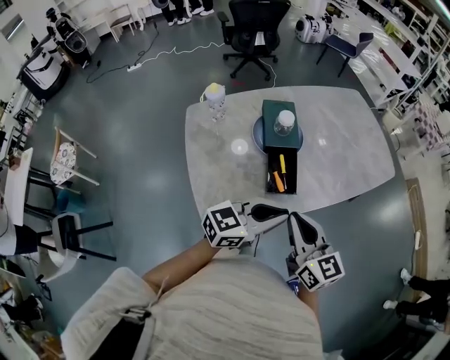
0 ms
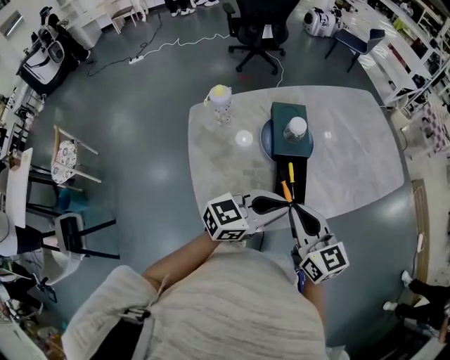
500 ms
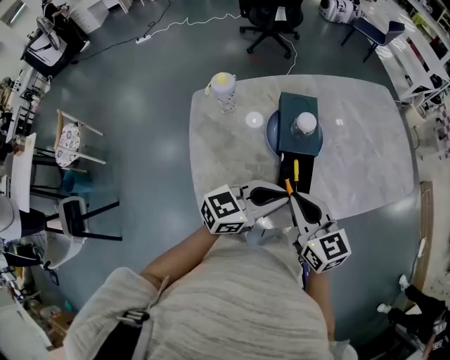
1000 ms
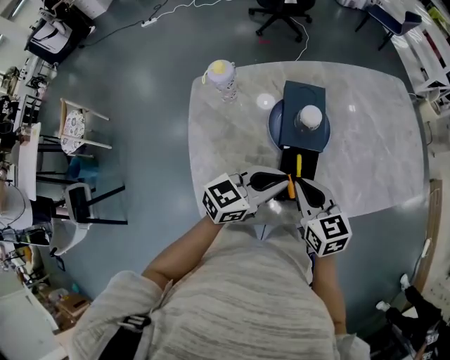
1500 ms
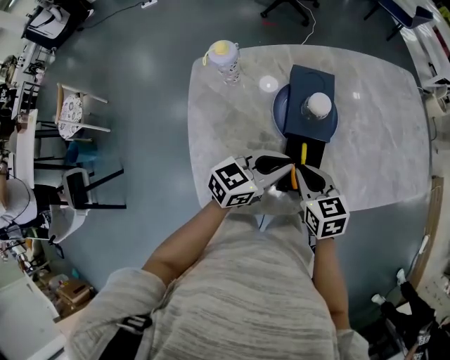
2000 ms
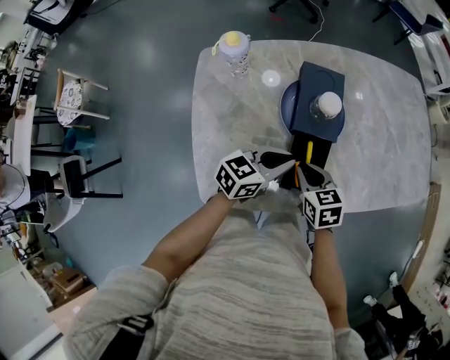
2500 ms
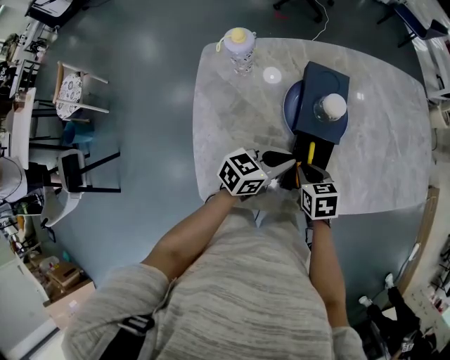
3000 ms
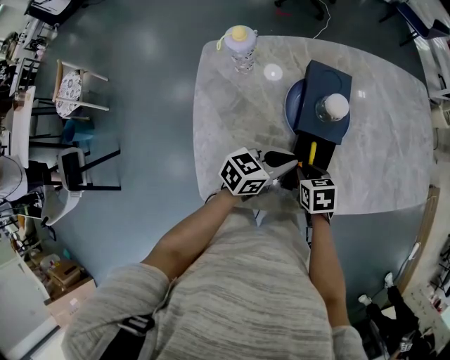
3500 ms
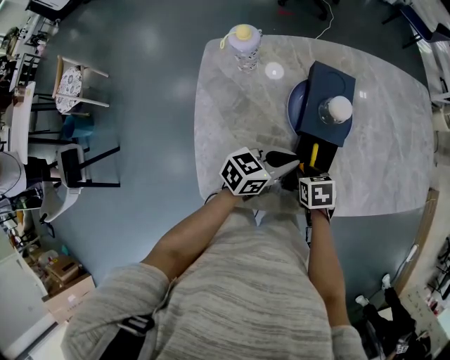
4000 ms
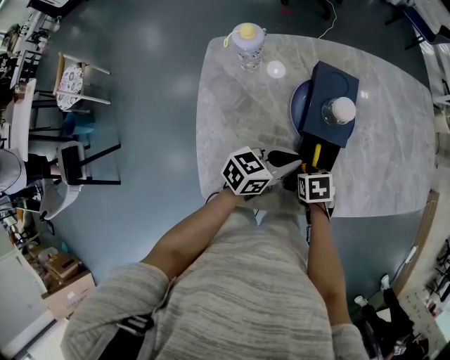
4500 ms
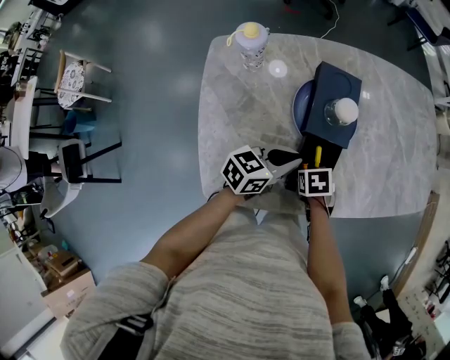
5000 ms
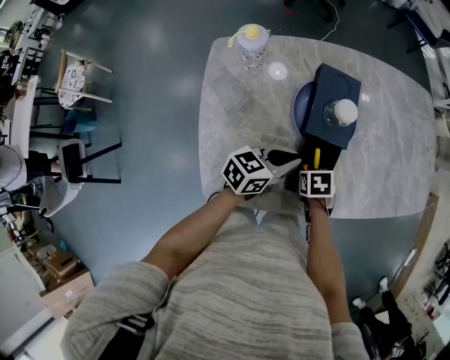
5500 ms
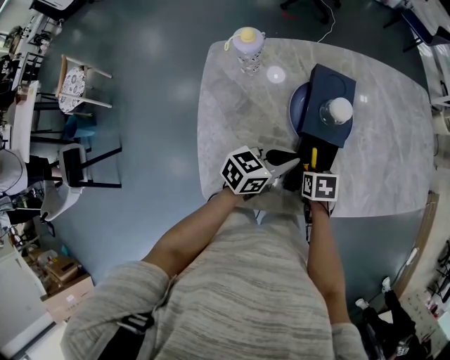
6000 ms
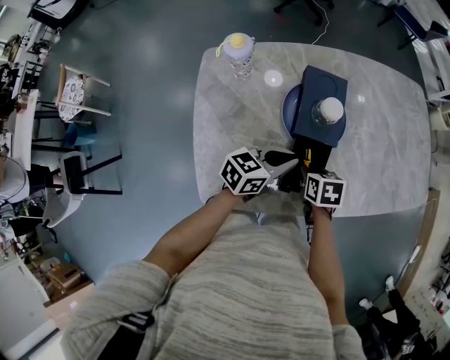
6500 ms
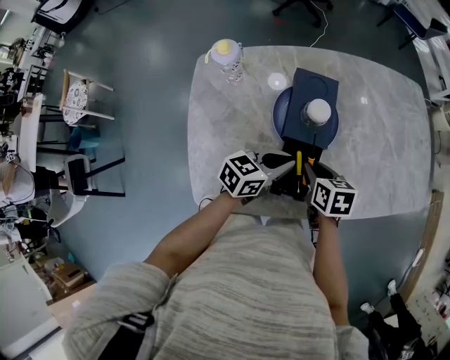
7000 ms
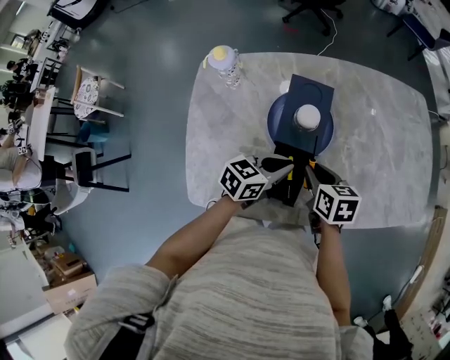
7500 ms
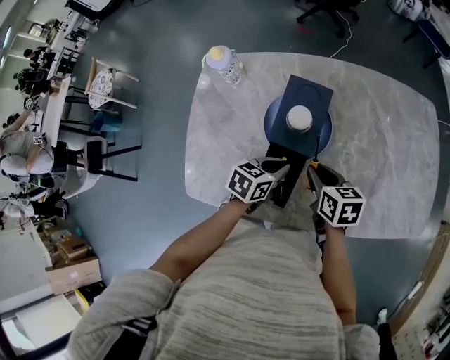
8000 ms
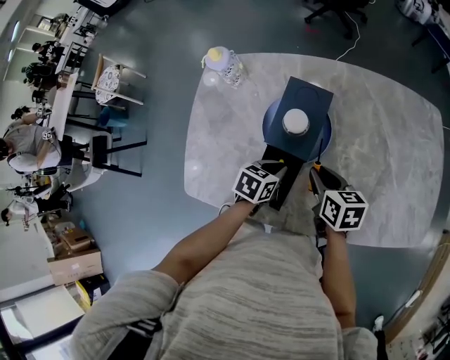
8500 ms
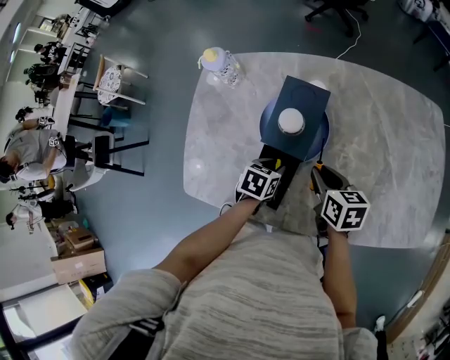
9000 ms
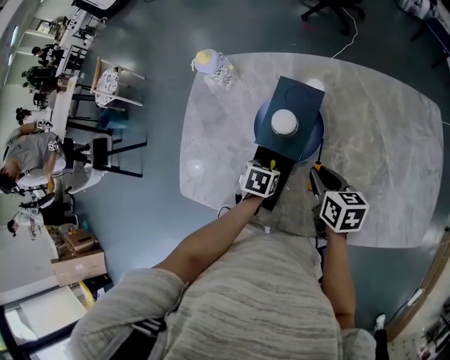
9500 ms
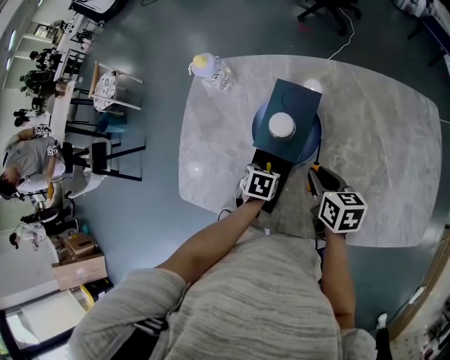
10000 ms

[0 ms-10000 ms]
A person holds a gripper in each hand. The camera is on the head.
0 ms to 2000 ms: Both grippers move forward and downward, roughly 25 cm. The right gripper tips its fingers downward by roughly 30 degrees. Meanwhile the left gripper swivels about 20 degrees.
2000 ms to 4000 ms: The left gripper goes about 5 cm downward; the right gripper travels downward by approximately 15 cm, and points its fingers roughly 30 degrees further downward.
4000 ms to 6000 ms: There are only small adjustments of the grippers.
6000 ms to 8000 ms: The right gripper travels upward, to the right and forward by about 20 cm, and turns by roughly 30 degrees. The left gripper heads to the right, covering about 10 cm, and changes its angle by about 30 degrees.
8000 ms to 10000 ms: The left gripper travels downward by roughly 10 cm, swivels some 40 degrees, and opens, while the right gripper ends up roughly 5 cm from where it was.

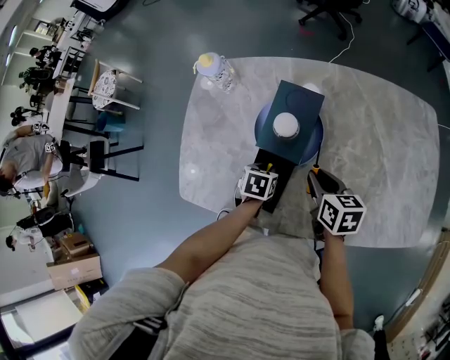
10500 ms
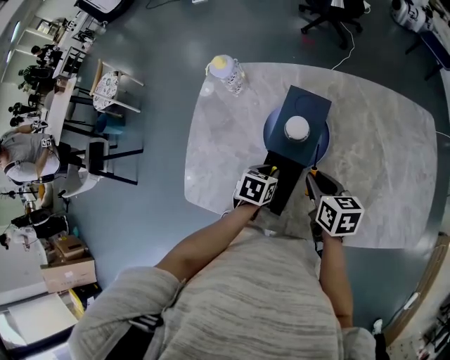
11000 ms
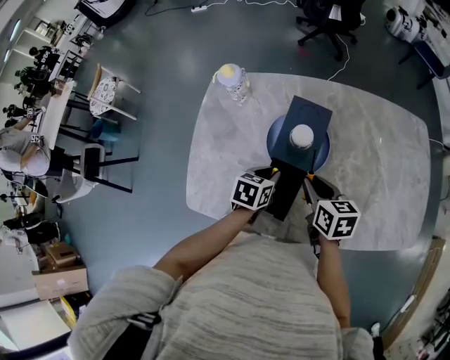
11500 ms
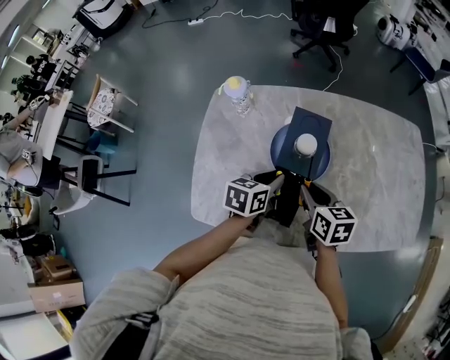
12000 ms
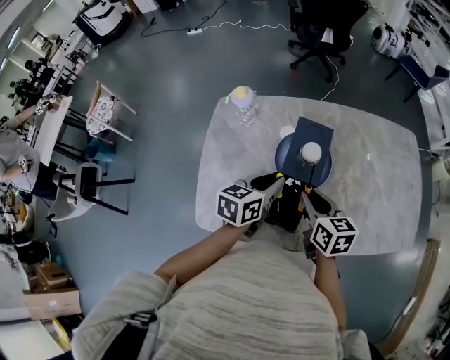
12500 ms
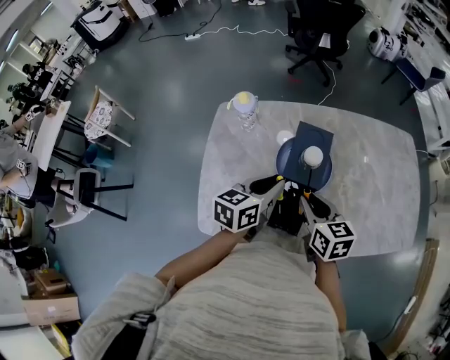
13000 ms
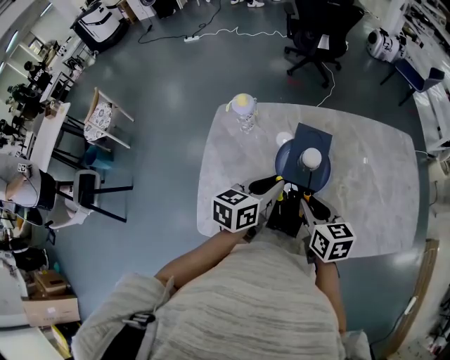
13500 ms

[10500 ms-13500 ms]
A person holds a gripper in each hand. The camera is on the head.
10500 ms to 12000 ms: The right gripper moves to the left and upward, about 10 cm. Meanwhile the left gripper goes roughly 15 cm upward, and turns by approximately 30 degrees.
12000 ms to 13500 ms: The left gripper heads upward, covering approximately 10 cm; the right gripper changes place by some 5 cm.

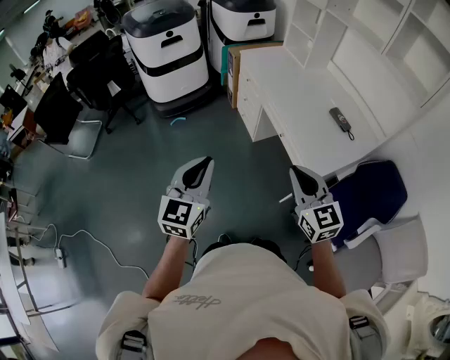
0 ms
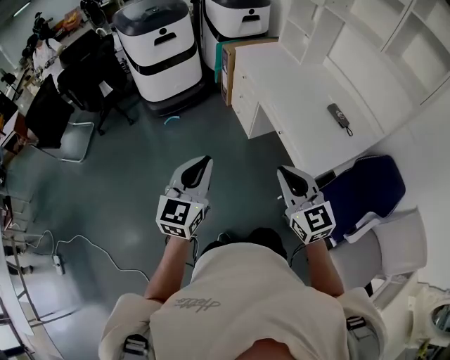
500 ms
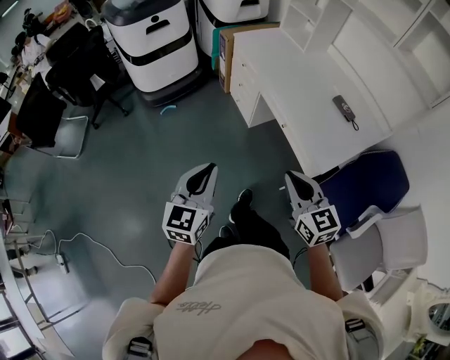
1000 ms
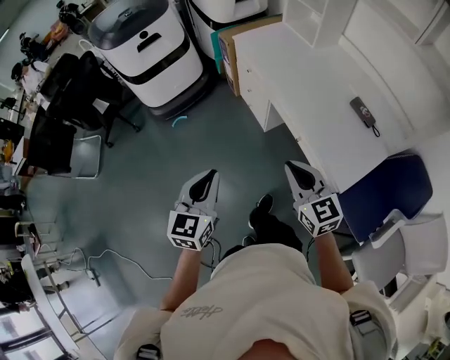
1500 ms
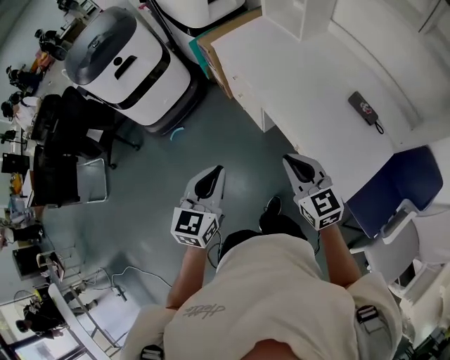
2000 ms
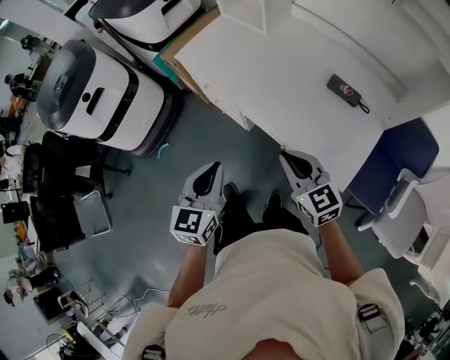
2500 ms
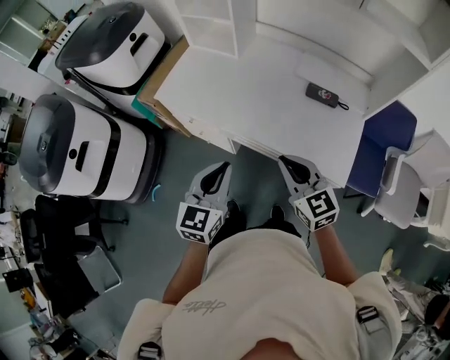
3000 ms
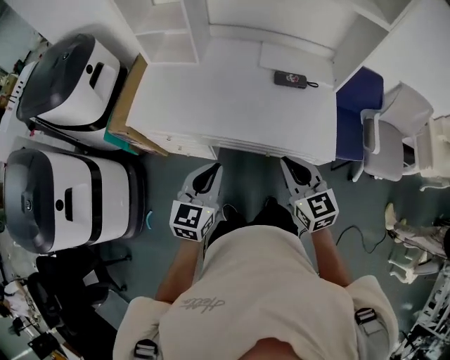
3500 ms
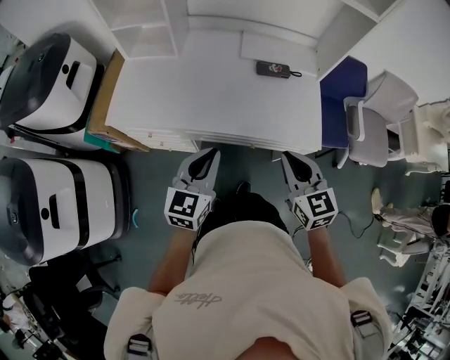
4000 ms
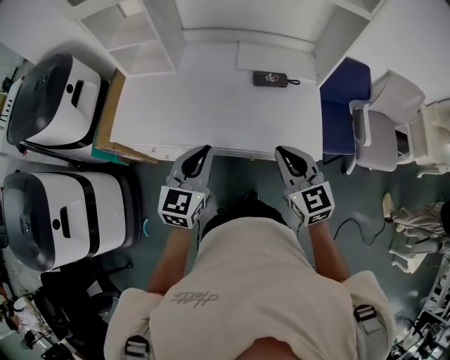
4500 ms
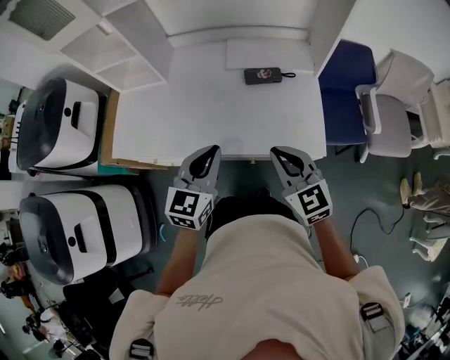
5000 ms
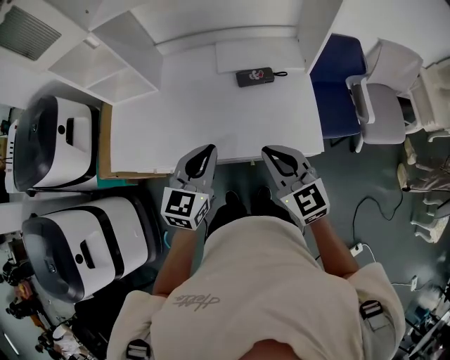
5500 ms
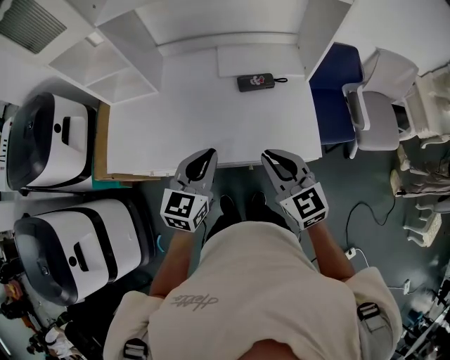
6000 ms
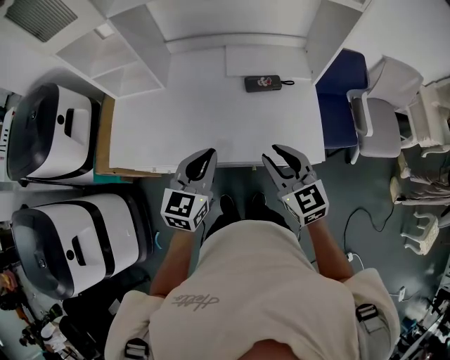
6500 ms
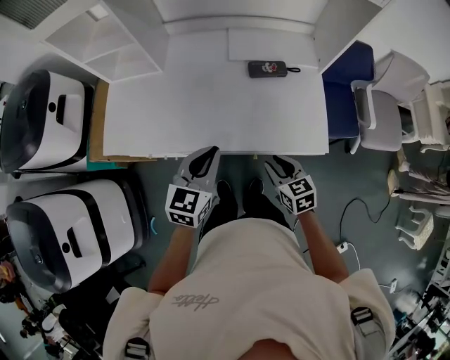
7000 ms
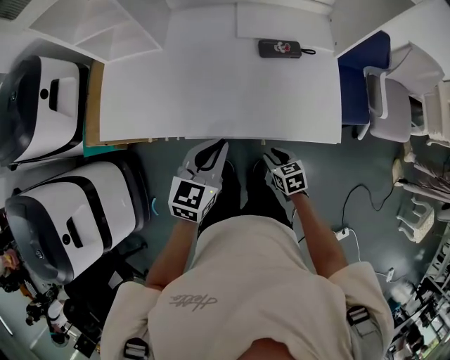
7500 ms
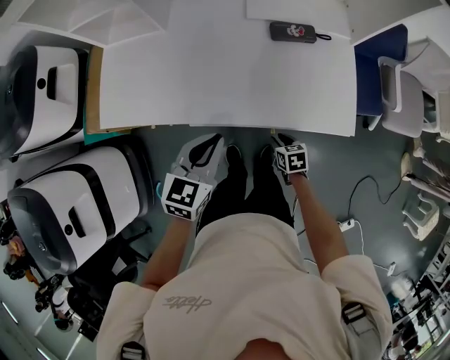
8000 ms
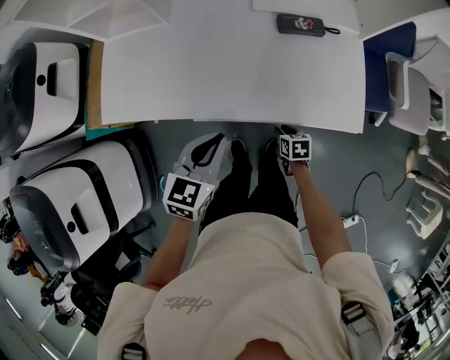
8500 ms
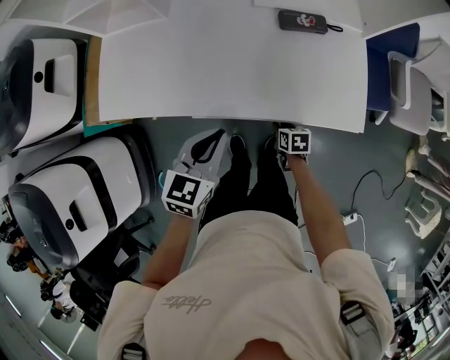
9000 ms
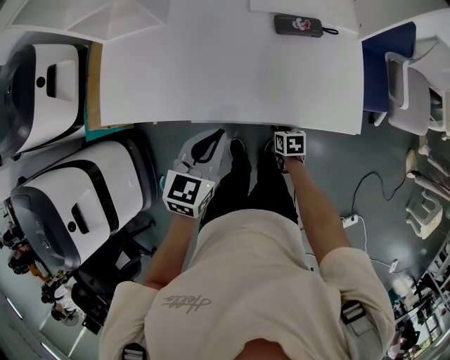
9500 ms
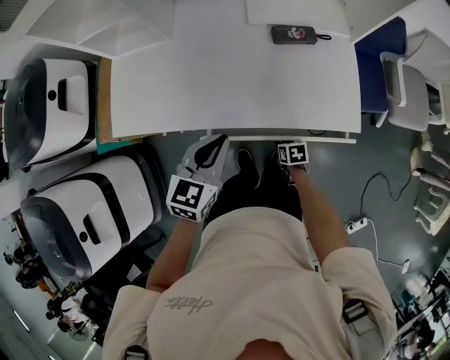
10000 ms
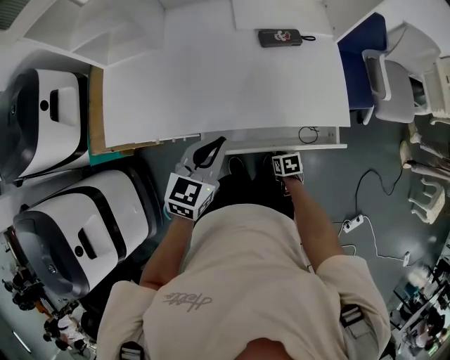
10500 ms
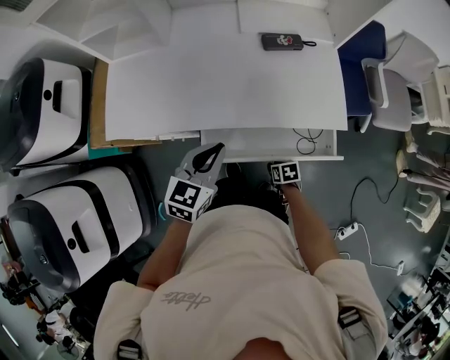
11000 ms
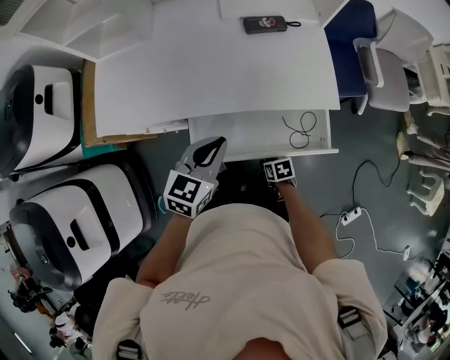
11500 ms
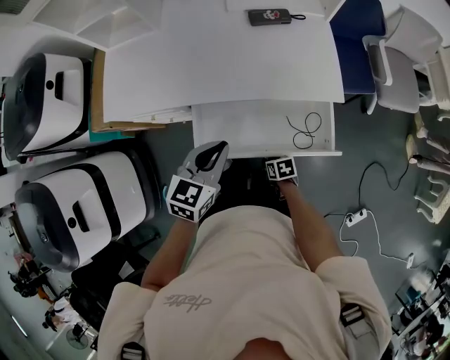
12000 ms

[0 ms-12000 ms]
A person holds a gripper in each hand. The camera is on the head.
0 ms to 2000 ms: Both grippers travel together forward, about 30 cm.
2000 ms to 4000 ms: The left gripper ends up approximately 20 cm from where it was, and turns by approximately 50 degrees, while the right gripper swivels approximately 60 degrees.
4000 ms to 6000 ms: The right gripper is displaced forward by approximately 10 cm, while the left gripper goes roughly 15 cm forward and to the right.
6000 ms to 8000 ms: The left gripper is displaced downward and to the left by roughly 15 cm, while the right gripper heads downward, covering about 40 cm, angles its fingers downward, by roughly 40 degrees, and opens its fingers.
8000 ms to 10000 ms: The grippers make only small movements.
10000 ms to 12000 ms: Both grippers travel together backward, roughly 15 cm.

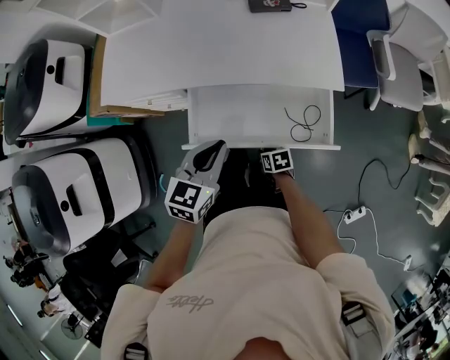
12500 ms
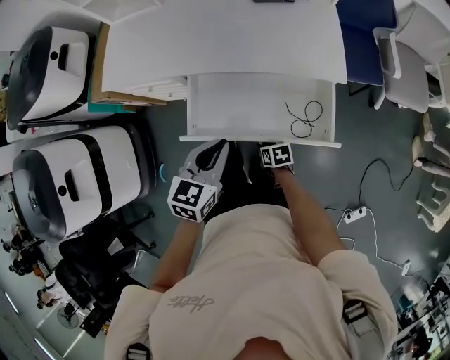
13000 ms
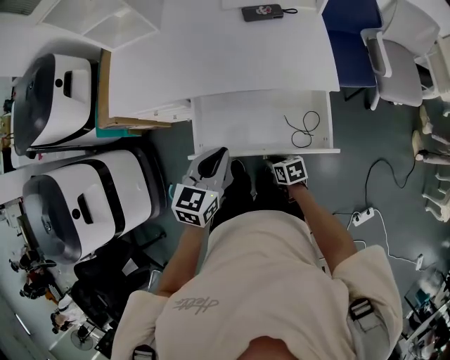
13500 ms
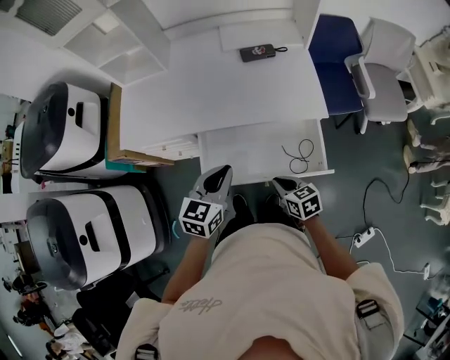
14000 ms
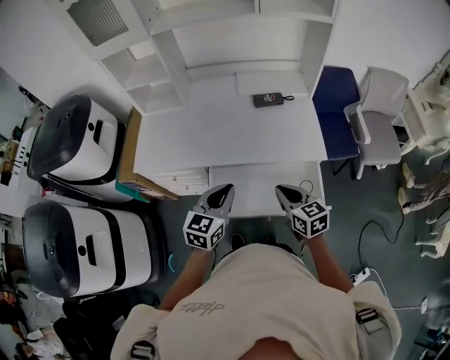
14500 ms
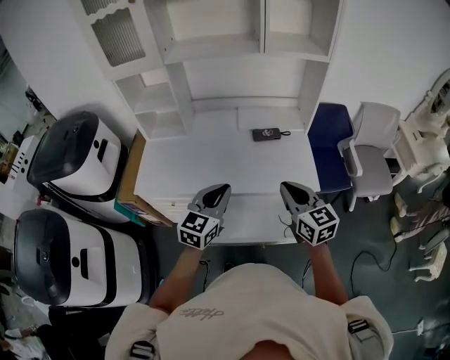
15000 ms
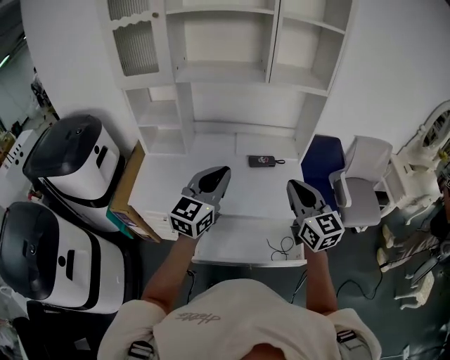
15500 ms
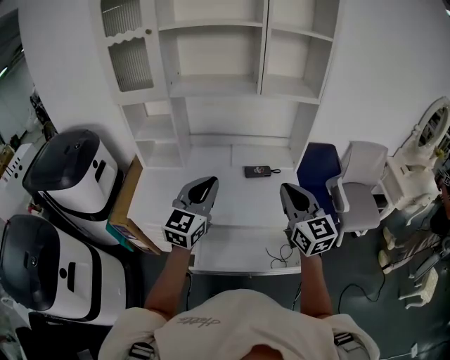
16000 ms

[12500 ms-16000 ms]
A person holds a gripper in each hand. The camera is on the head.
12500 ms to 14500 ms: The left gripper shifts some 10 cm upward; the right gripper shifts approximately 35 cm upward, and tips its fingers upward by about 30 degrees.
14500 ms to 16000 ms: The two grippers go about 25 cm upward. The left gripper rotates about 30 degrees. The right gripper swivels about 40 degrees.
